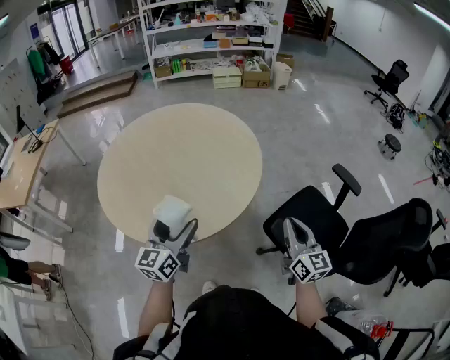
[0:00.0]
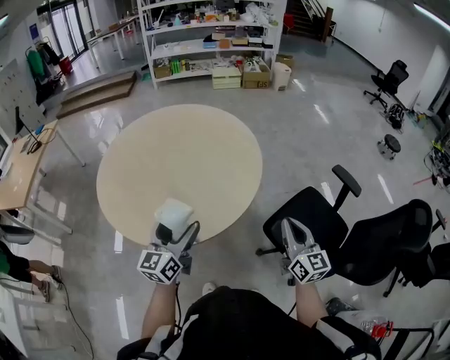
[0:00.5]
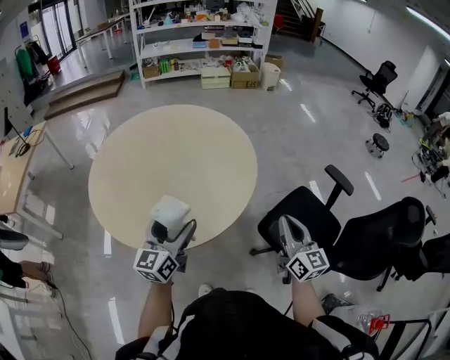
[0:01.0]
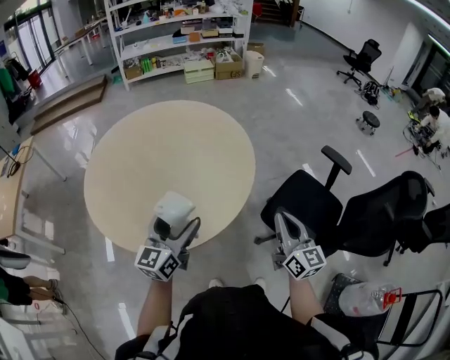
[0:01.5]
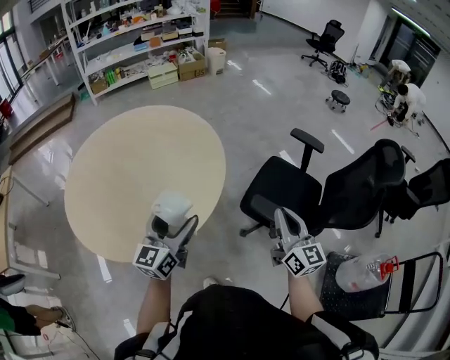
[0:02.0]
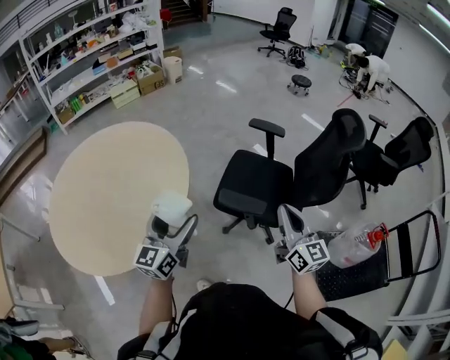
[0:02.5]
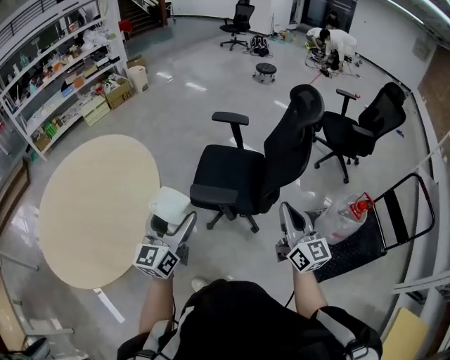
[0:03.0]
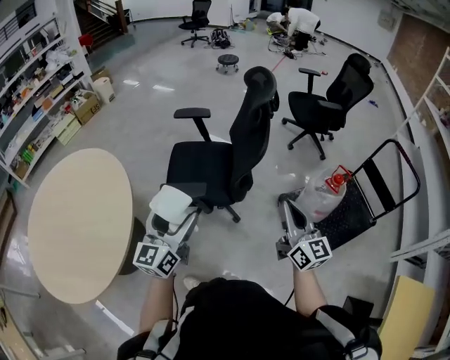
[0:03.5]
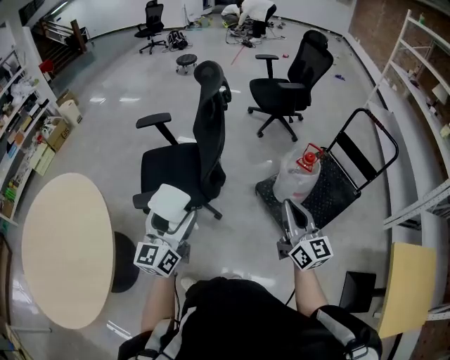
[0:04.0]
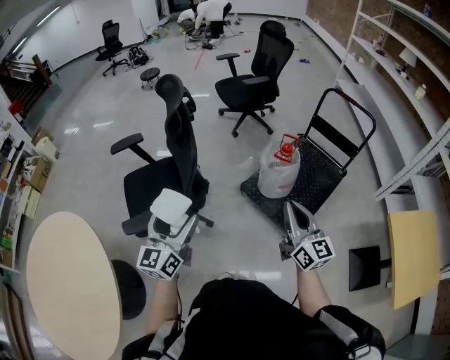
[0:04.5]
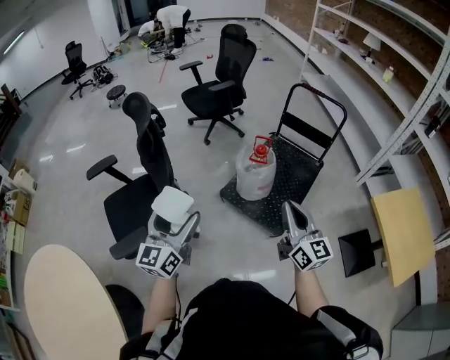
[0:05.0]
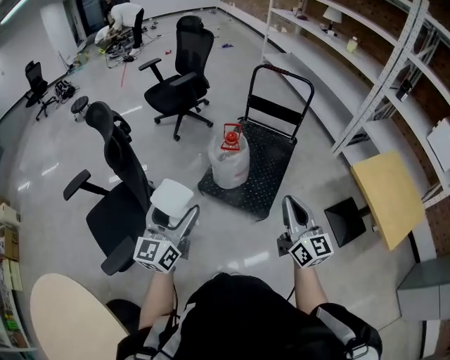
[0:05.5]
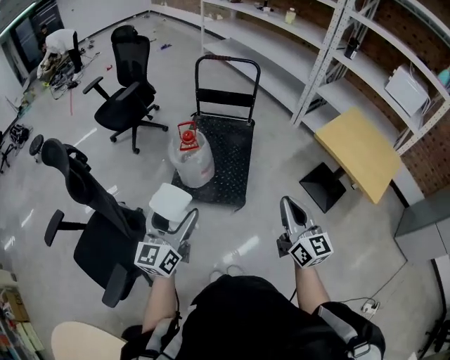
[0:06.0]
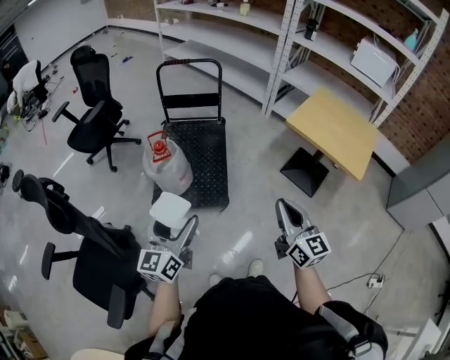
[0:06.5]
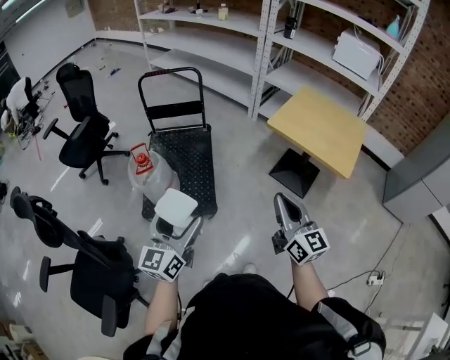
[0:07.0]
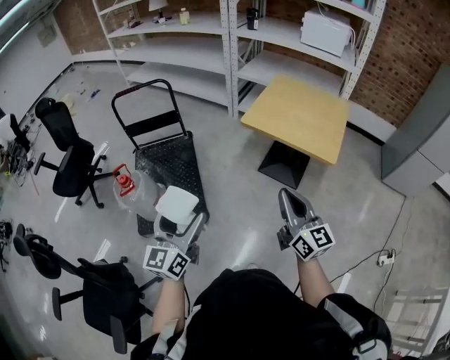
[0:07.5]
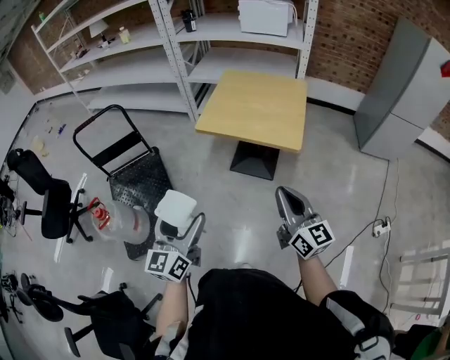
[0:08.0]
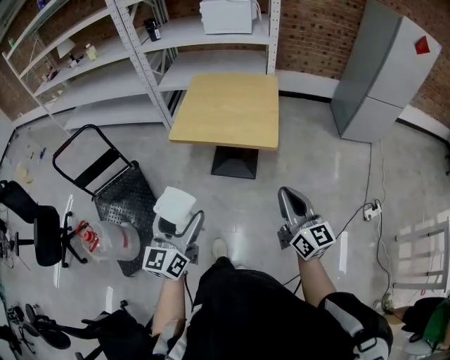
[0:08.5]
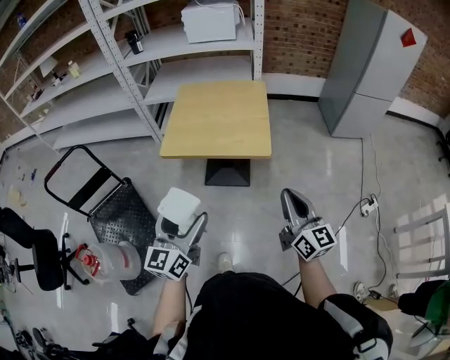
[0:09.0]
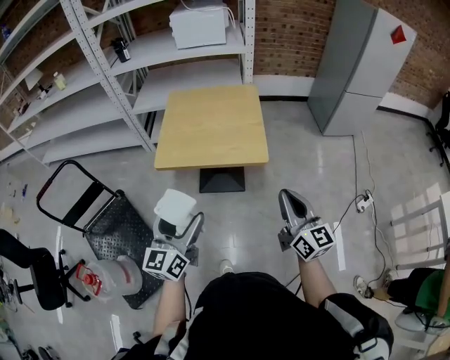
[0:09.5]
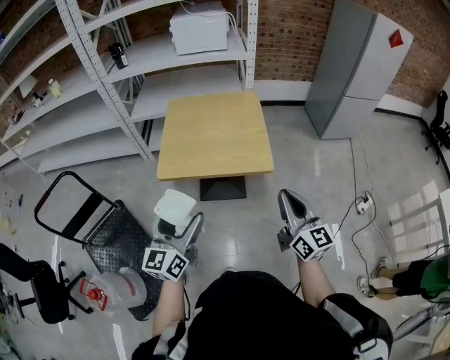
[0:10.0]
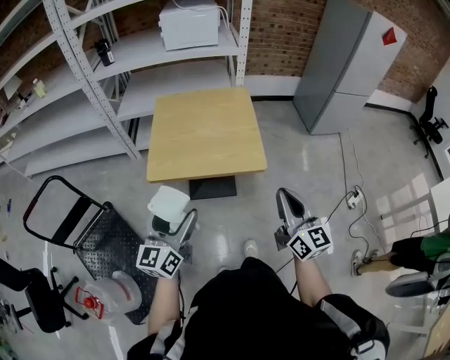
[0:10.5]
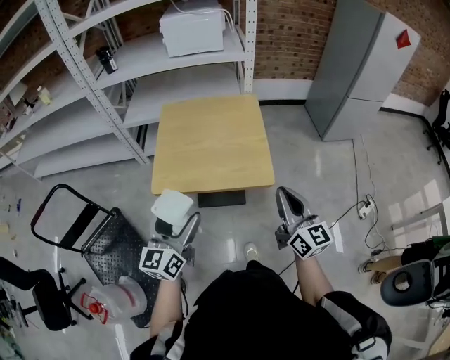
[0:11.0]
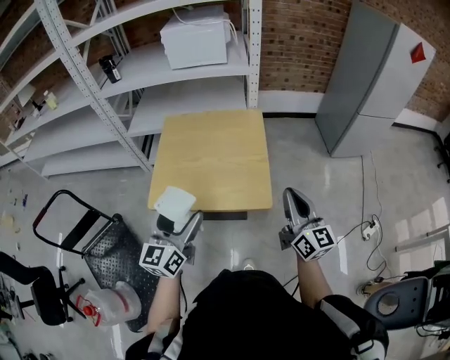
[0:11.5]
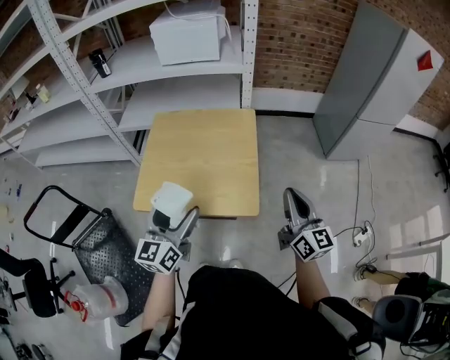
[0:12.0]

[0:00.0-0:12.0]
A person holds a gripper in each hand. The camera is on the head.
0:00.0 to 0:02.0: The right gripper travels backward by some 10 cm; the left gripper turns by approximately 20 degrees.
0:02.0 to 0:04.0: Both grippers are carried about 50 cm. The left gripper swivels roughly 40 degrees, while the right gripper swivels approximately 50 degrees.
0:04.0 to 0:06.0: The right gripper changes place by approximately 25 cm, and swivels some 50 degrees, while the left gripper shifts by approximately 25 cm, and changes its angle by some 50 degrees.
0:06.0 to 0:08.0: The right gripper moves approximately 35 cm, and rotates roughly 30 degrees. The left gripper moves about 40 cm, and changes its angle by approximately 30 degrees.
0:08.0 to 0:10.0: The left gripper travels forward by some 20 cm, and changes its angle by about 20 degrees. Meanwhile the right gripper travels forward by some 10 cm, and rotates approximately 20 degrees.
0:10.0 to 0:12.0: The two grippers go some 25 cm forward and to the right.

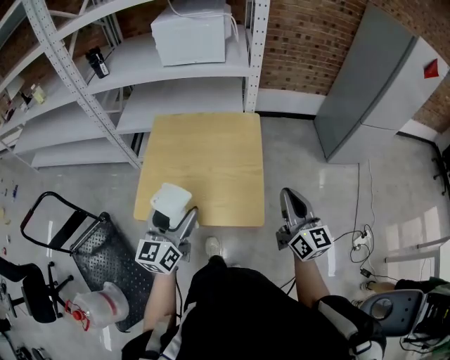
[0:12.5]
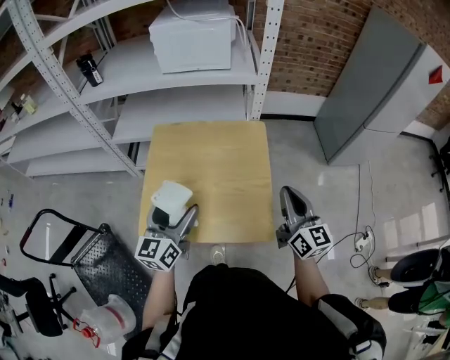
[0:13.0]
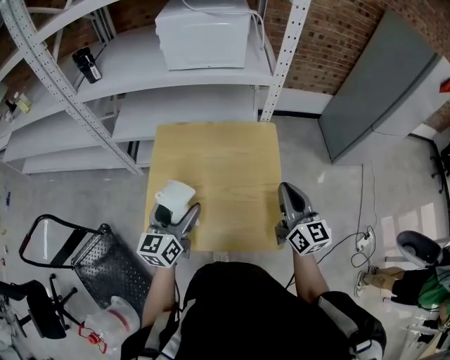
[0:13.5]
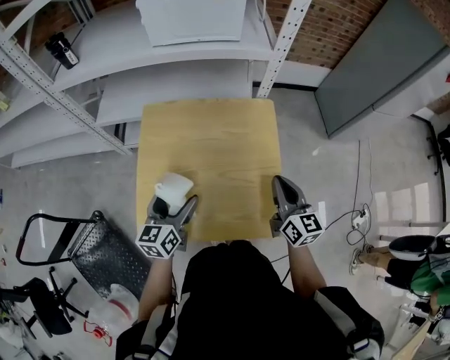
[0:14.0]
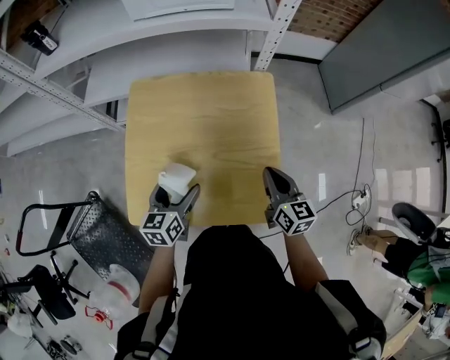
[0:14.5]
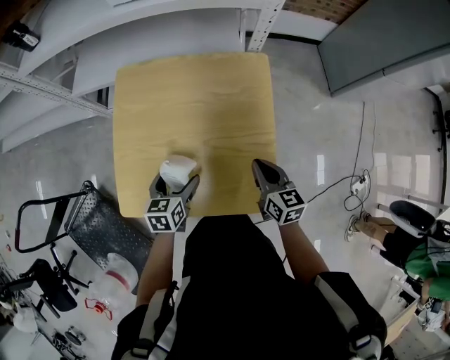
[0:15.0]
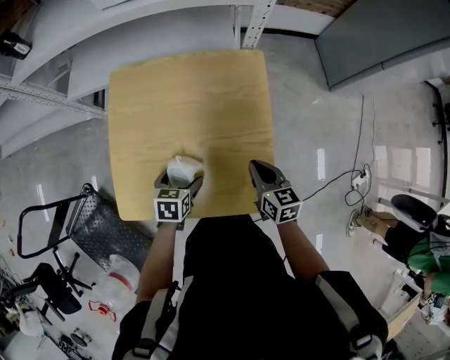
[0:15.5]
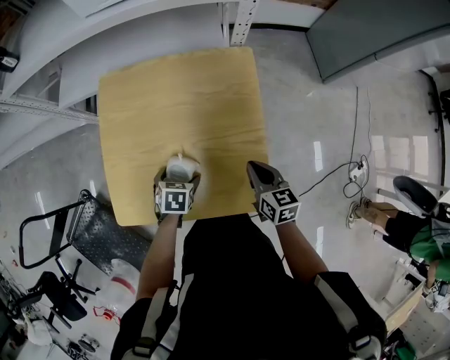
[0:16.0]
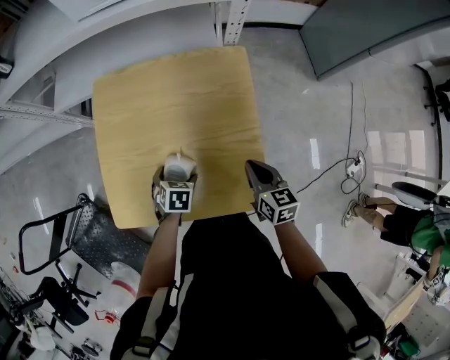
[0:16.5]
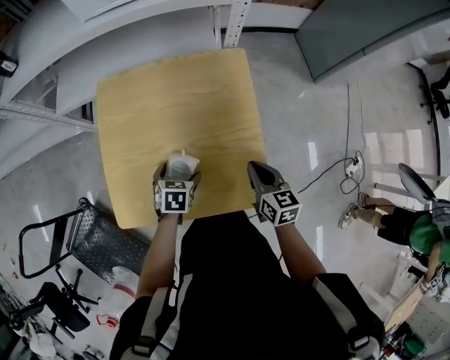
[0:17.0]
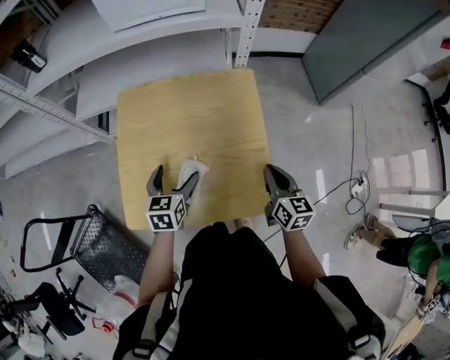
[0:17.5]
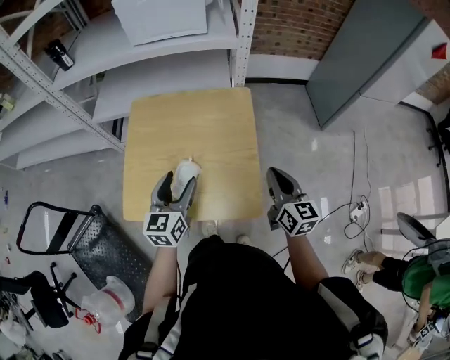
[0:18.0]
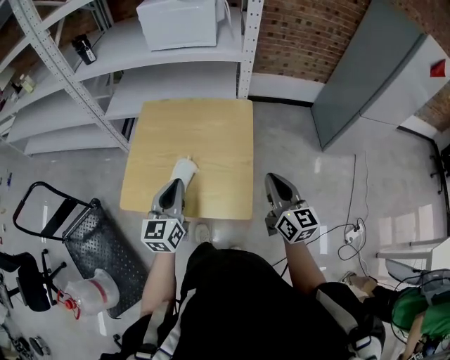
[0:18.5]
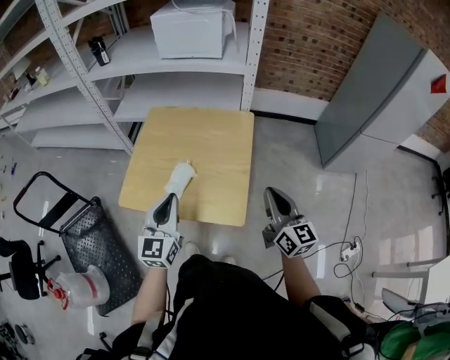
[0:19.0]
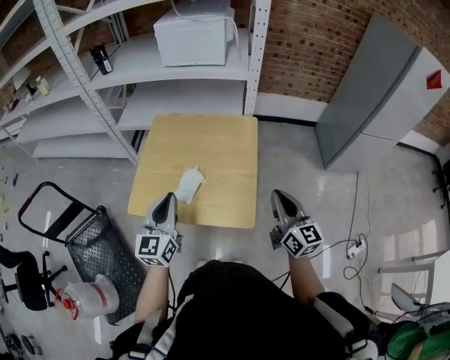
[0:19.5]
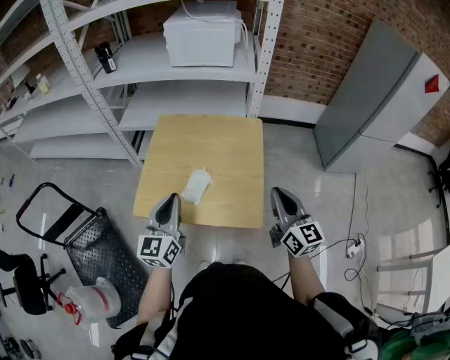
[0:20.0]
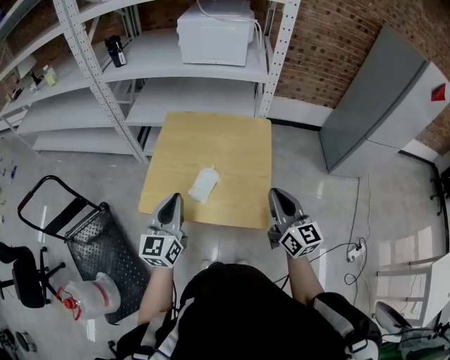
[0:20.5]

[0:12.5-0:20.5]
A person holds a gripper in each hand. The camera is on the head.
0:12.5 to 0:14.5: The right gripper travels downward, forward and to the left by some 20 cm, and swivels about 30 degrees, while the left gripper goes approximately 25 cm downward and forward, and rotates roughly 30 degrees.
0:14.5 to 0:16.5: The right gripper moves downward, about 5 cm. The left gripper heads downward, covering roughly 15 cm, and tilts its fingers some 40 degrees downward.
0:16.5 to 0:18.5: The right gripper goes roughly 20 cm upward and to the right, and rotates some 30 degrees; the left gripper heads upward, covering some 30 cm, points its fingers roughly 60 degrees further upward, and closes up.
0:18.5 to 0:20.5: Both grippers travel together to the left, roughly 10 cm.

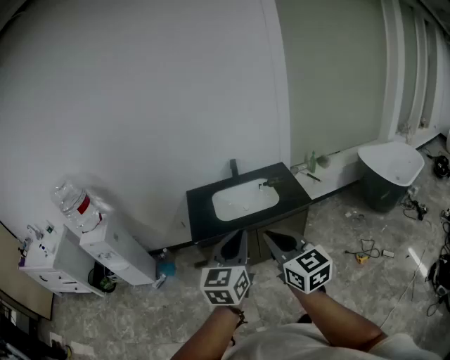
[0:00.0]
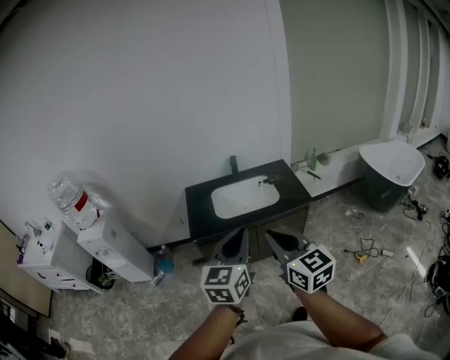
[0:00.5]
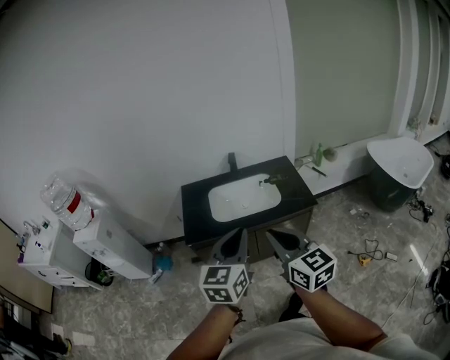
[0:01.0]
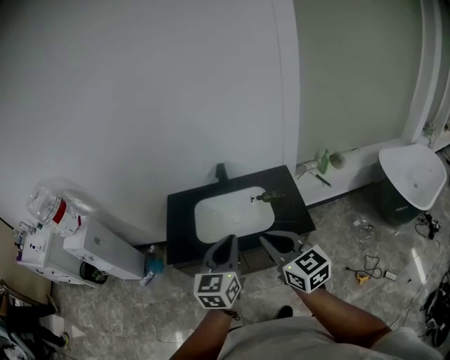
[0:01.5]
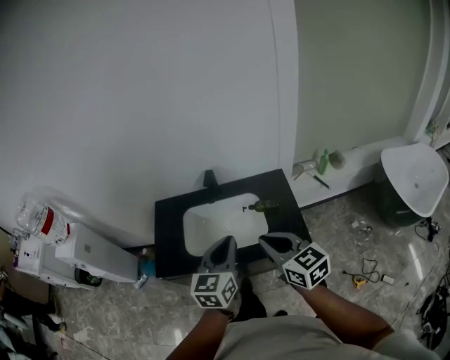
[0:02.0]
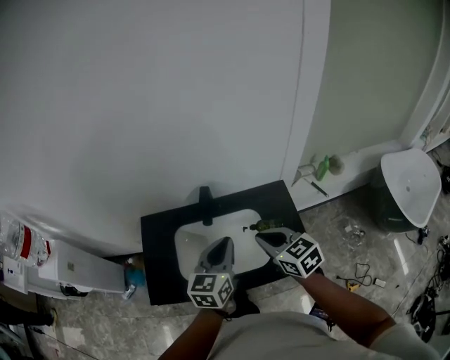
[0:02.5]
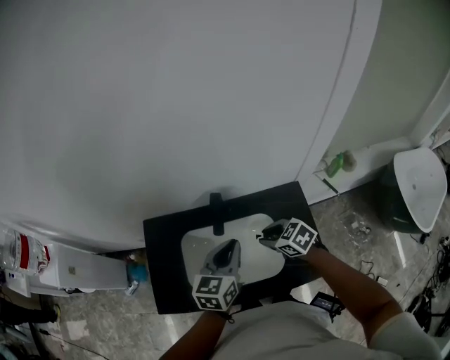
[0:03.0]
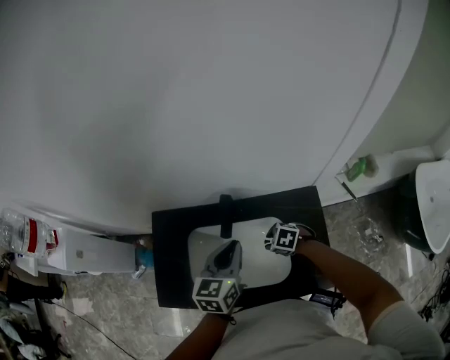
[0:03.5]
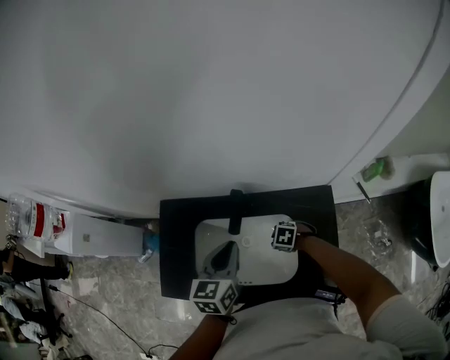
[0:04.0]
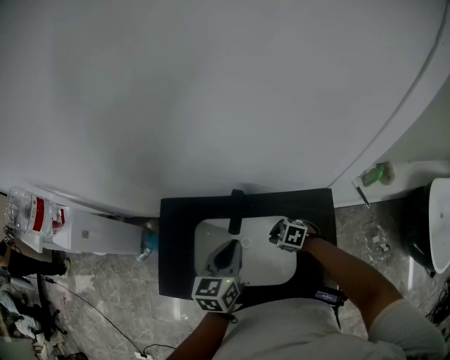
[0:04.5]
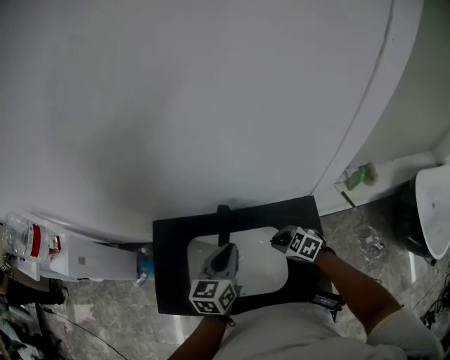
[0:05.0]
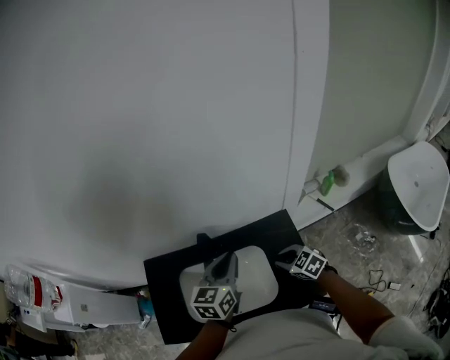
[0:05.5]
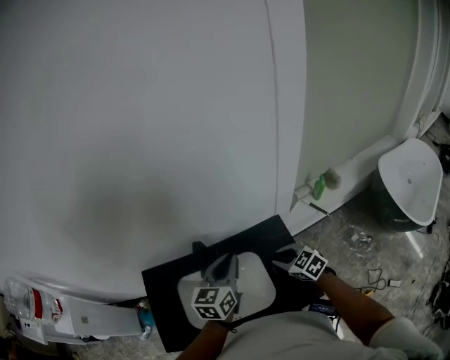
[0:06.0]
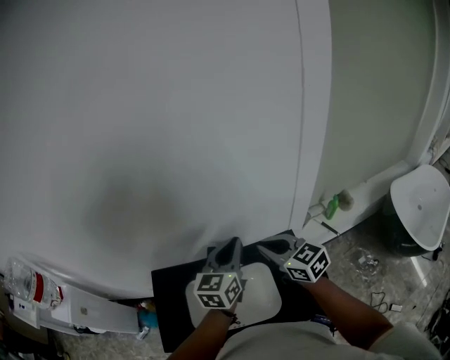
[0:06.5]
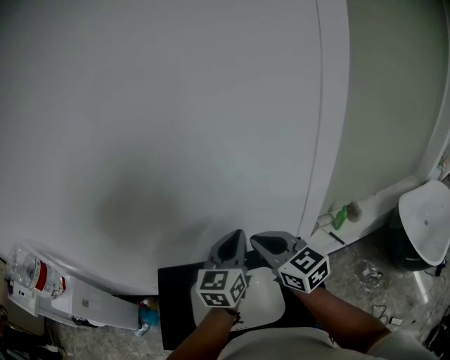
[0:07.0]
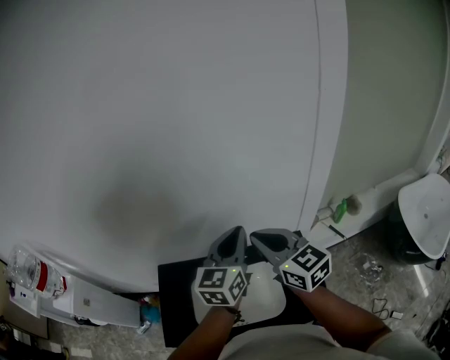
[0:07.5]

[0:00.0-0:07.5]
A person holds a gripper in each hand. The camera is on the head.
0:00.0 to 0:02.0: The two grippers travel together, forward and to the right, about 50 cm.
0:02.0 to 0:04.0: The right gripper is displaced downward by some 40 cm, points its fingers about 60 degrees further downward, and opens up; the left gripper changes place by about 35 cm.
0:04.0 to 0:05.5: The right gripper is displaced upward by about 15 cm, and changes its angle by about 50 degrees. Meanwhile the left gripper shifts by some 15 cm.
0:05.5 to 0:07.5: The left gripper is displaced upward by about 15 cm. Meanwhile the right gripper heads upward, covering roughly 35 cm, and tips its fingers upward by roughly 40 degrees.
